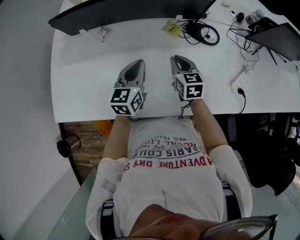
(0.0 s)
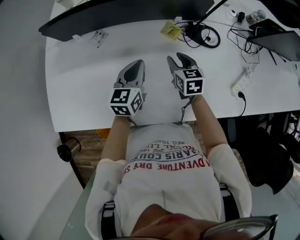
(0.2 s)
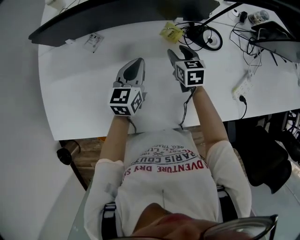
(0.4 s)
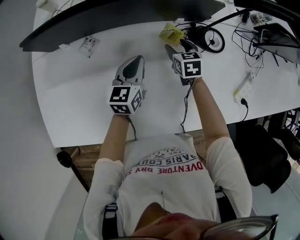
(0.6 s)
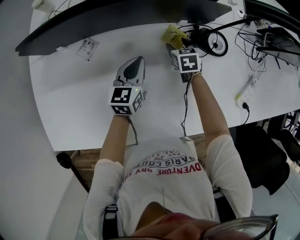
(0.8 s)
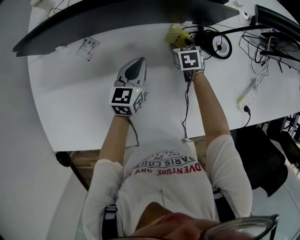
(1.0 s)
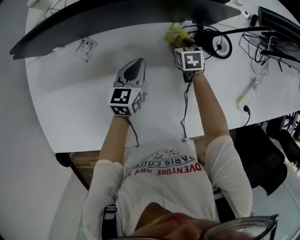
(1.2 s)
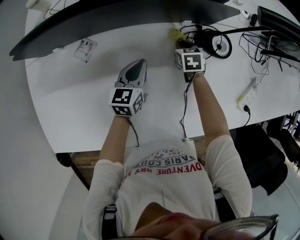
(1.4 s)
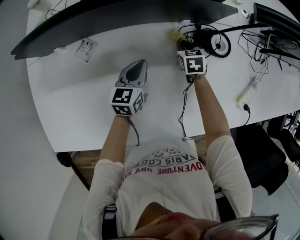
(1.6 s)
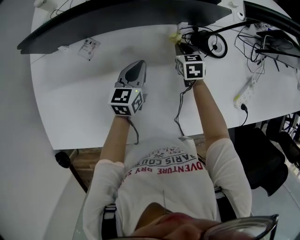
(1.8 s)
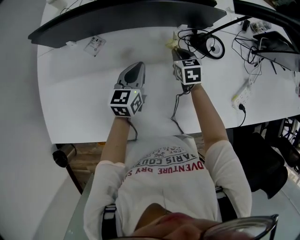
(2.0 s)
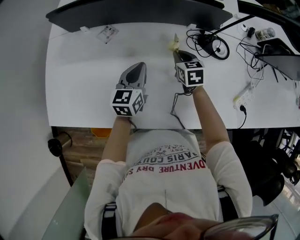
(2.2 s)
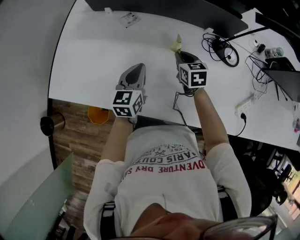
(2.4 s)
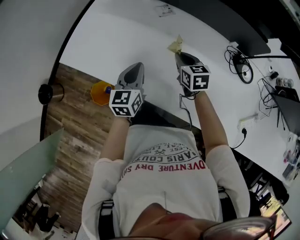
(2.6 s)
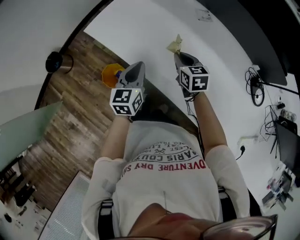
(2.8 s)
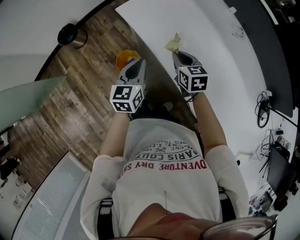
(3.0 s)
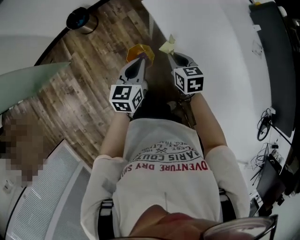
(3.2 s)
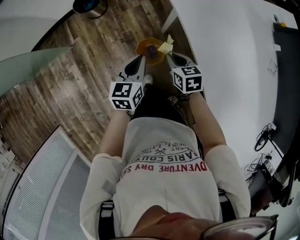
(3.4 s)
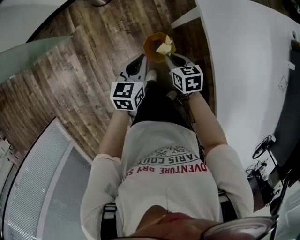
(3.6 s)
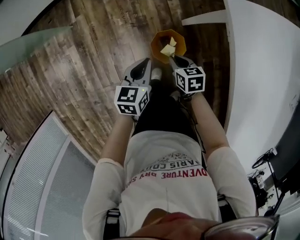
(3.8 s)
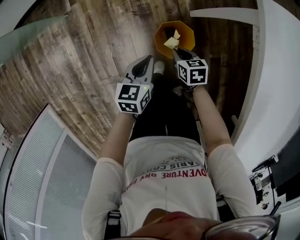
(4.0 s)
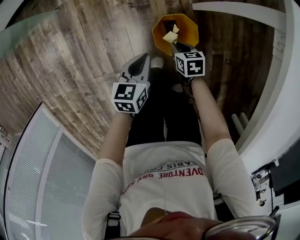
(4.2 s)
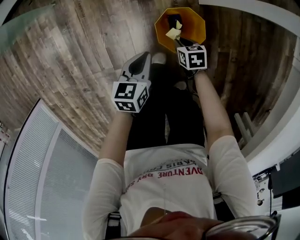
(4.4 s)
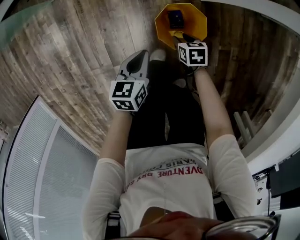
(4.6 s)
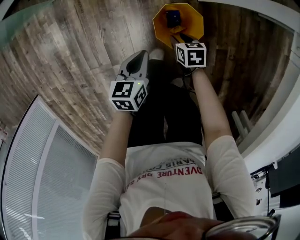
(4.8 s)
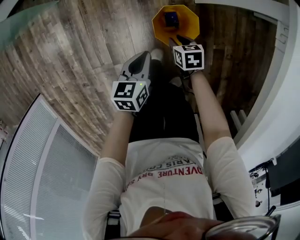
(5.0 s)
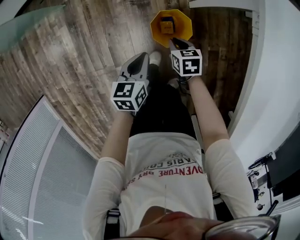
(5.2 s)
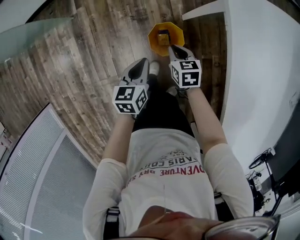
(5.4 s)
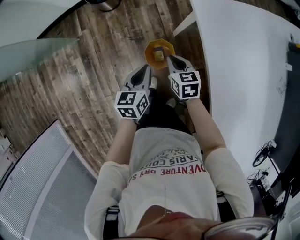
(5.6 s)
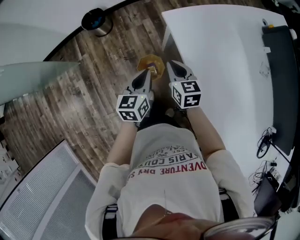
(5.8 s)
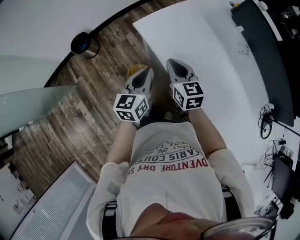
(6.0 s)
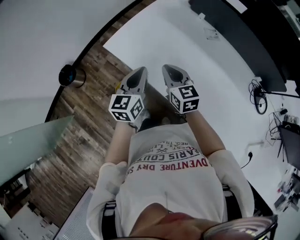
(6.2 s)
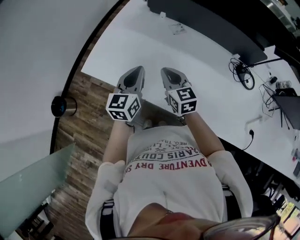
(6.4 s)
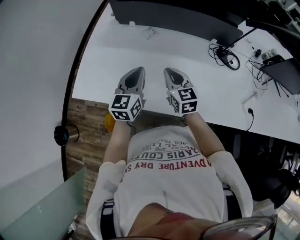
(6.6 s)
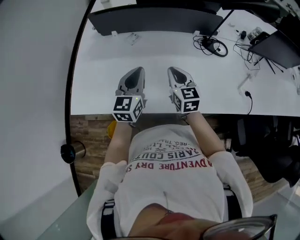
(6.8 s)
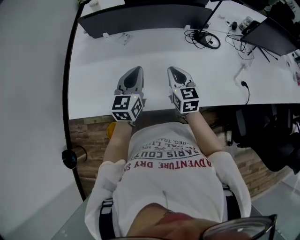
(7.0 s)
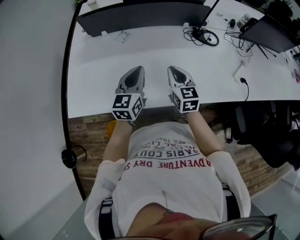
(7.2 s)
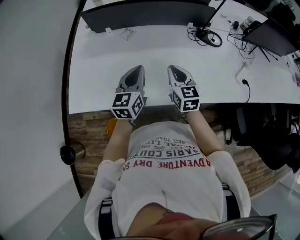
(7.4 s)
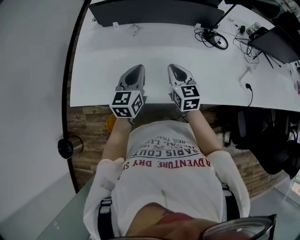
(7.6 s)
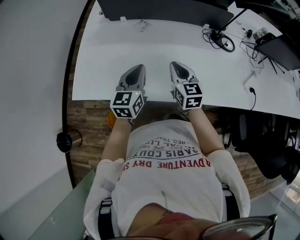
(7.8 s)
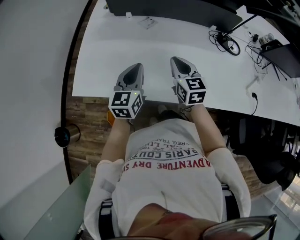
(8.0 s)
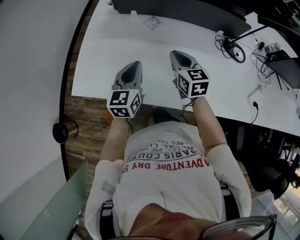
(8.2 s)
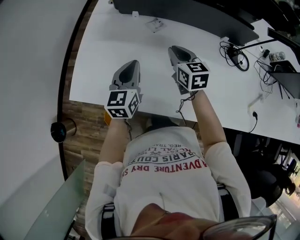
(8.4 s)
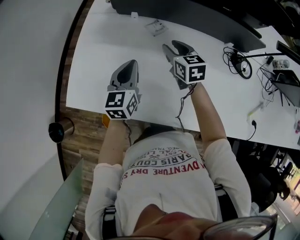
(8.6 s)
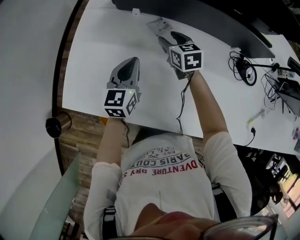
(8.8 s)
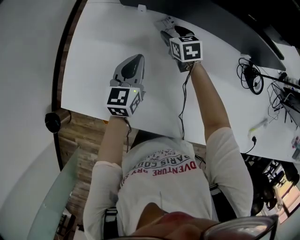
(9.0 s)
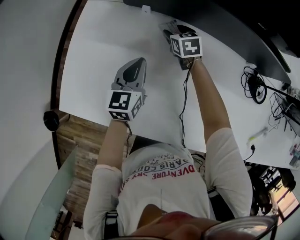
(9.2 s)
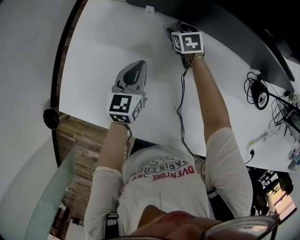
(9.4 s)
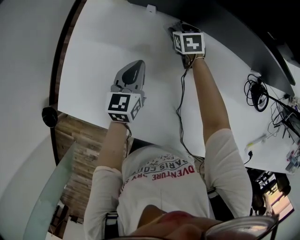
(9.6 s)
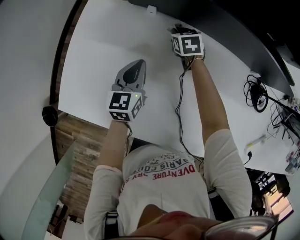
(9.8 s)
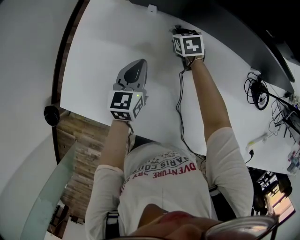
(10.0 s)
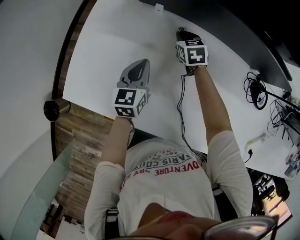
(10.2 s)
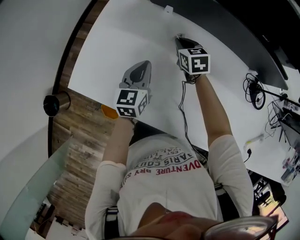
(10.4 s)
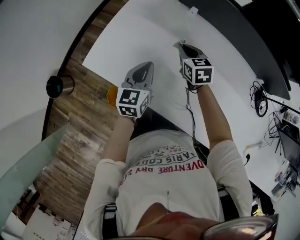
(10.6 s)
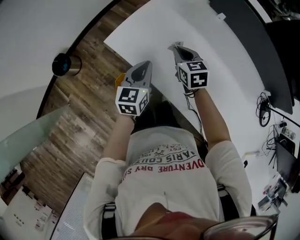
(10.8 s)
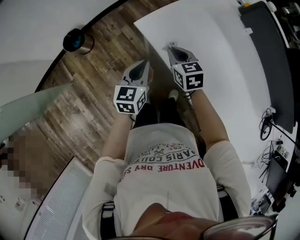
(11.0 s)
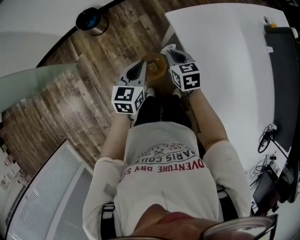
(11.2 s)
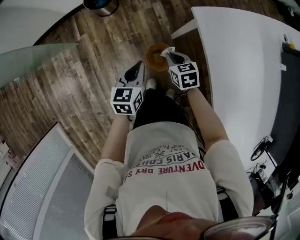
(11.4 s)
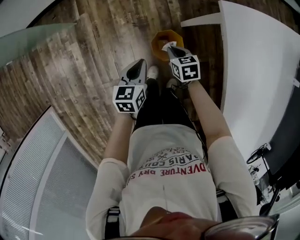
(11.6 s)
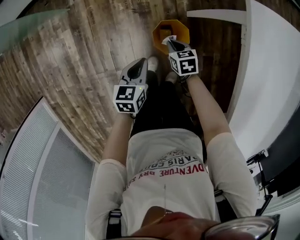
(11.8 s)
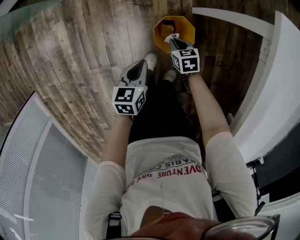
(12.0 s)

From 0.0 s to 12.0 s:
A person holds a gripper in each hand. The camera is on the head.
From 0.0 s to 1.6 s: The two grippers go roughly 25 cm forward and downward. The right gripper swivels approximately 20 degrees, and opens, then closes once more.
From 1.6 s to 3.0 s: The pair of grippers is taken roughly 60 cm. The right gripper turns by some 60 degrees; the left gripper turns by approximately 60 degrees.
From 3.0 s to 4.4 s: The grippers both shift downward by some 50 cm. The right gripper changes its angle by some 40 degrees. The left gripper changes its angle by roughly 40 degrees.
From 4.4 s to 6.0 s: The grippers both shift upward by some 60 cm. The left gripper changes its angle by roughly 40 degrees. Meanwhile the right gripper tilts its fingers approximately 40 degrees upward, and opens and closes again.
From 6.0 s to 7.6 s: The left gripper ends up roughly 30 cm from where it was, and turns by some 50 degrees; the right gripper changes place by roughly 35 cm, and rotates about 60 degrees.
From 7.6 s to 9.0 s: The left gripper travels forward and downward by roughly 25 cm; the right gripper is displaced forward and downward by some 40 cm, turns by roughly 30 degrees, and opens its fingers.
From 9.0 s to 10.4 s: The left gripper goes approximately 10 cm to the left and backward. Meanwhile the right gripper moves to the left, roughly 5 cm, and closes its fingers.
From 10.4 s to 12.0 s: Both grippers are carried approximately 60 cm. The left gripper rotates approximately 70 degrees; the right gripper rotates some 70 degrees.

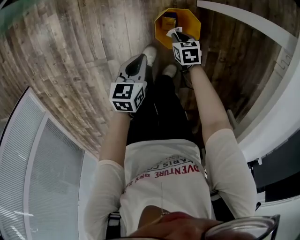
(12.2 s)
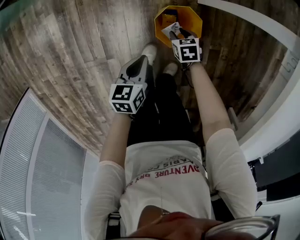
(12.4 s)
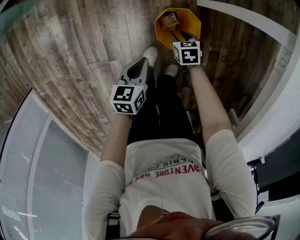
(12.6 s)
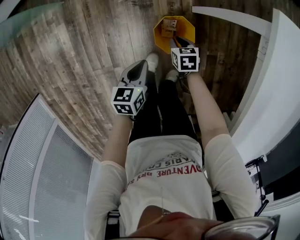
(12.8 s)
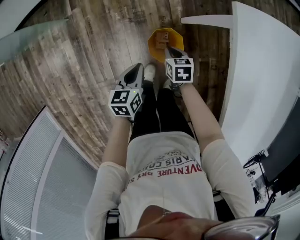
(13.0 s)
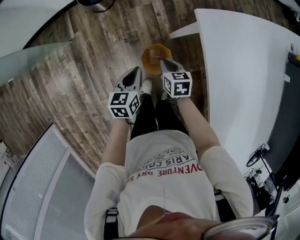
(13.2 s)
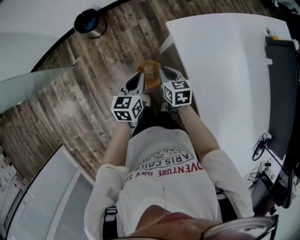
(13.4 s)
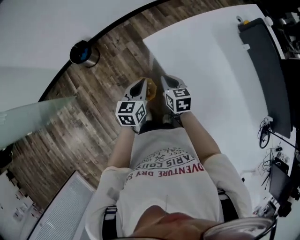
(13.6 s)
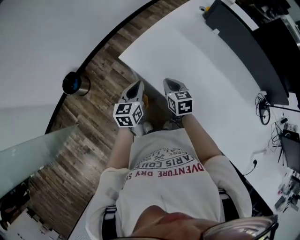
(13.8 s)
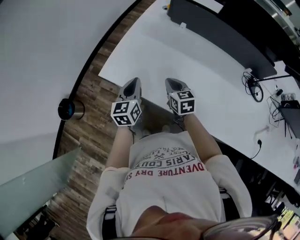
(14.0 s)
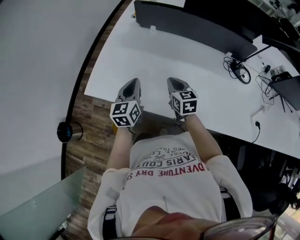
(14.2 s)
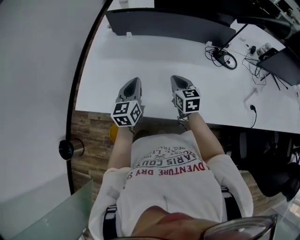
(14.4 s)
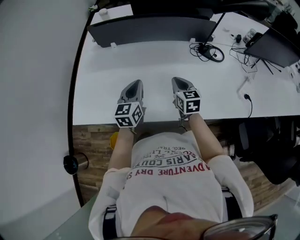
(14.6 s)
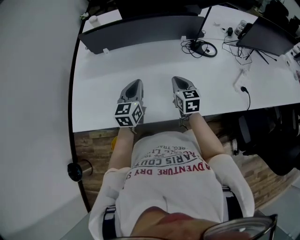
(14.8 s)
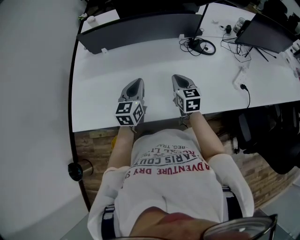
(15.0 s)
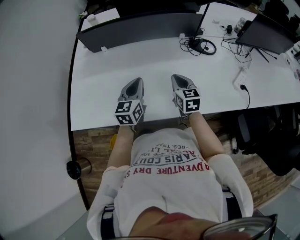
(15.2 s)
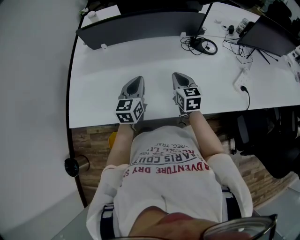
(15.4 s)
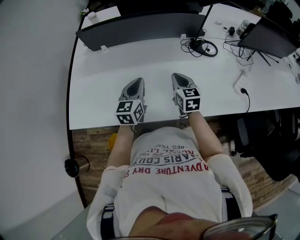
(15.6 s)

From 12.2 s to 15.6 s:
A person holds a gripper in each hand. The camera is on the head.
From 12.2 s to 13.8 s: The grippers both shift upward by roughly 50 cm. The right gripper turns by about 60 degrees, and opens and closes again. The left gripper swivels roughly 50 degrees.
From 13.8 s to 15.6 s: The pair of grippers is taken approximately 50 cm. The right gripper swivels some 50 degrees; the left gripper turns by some 50 degrees.

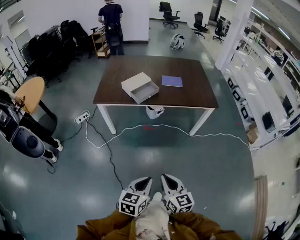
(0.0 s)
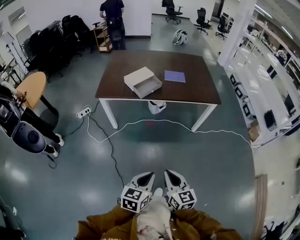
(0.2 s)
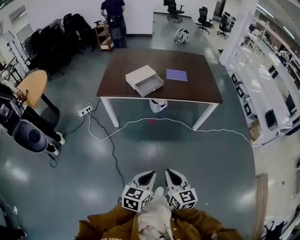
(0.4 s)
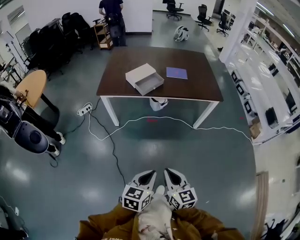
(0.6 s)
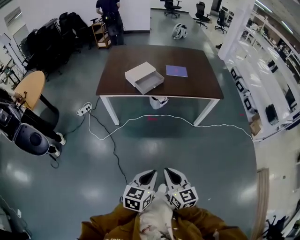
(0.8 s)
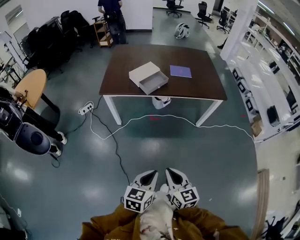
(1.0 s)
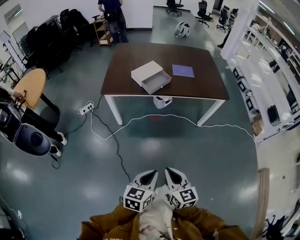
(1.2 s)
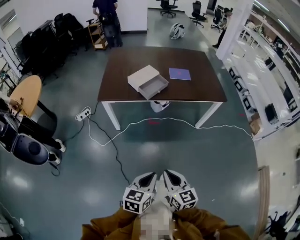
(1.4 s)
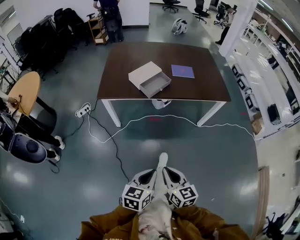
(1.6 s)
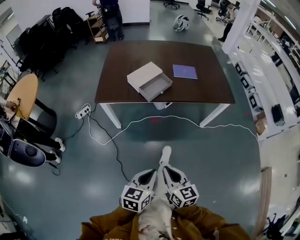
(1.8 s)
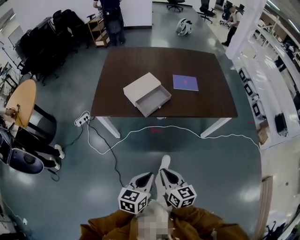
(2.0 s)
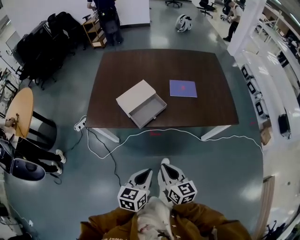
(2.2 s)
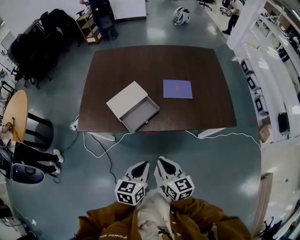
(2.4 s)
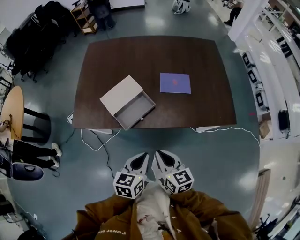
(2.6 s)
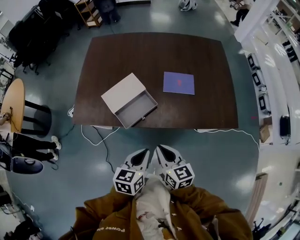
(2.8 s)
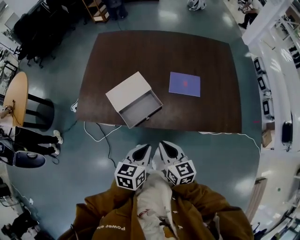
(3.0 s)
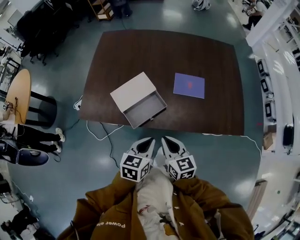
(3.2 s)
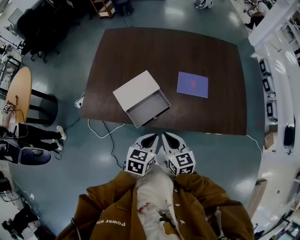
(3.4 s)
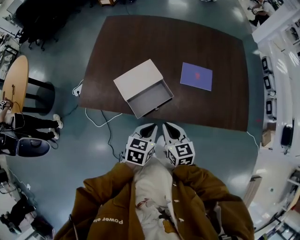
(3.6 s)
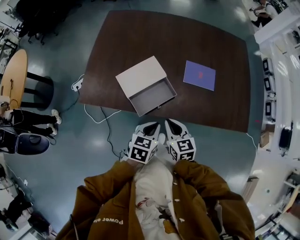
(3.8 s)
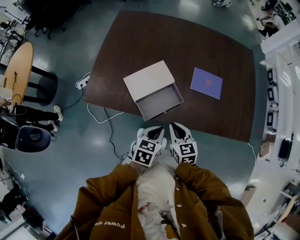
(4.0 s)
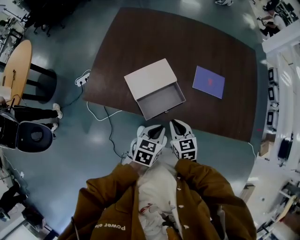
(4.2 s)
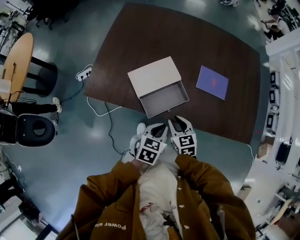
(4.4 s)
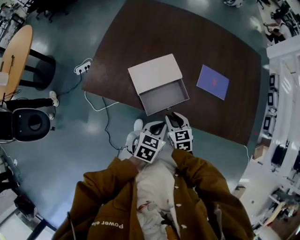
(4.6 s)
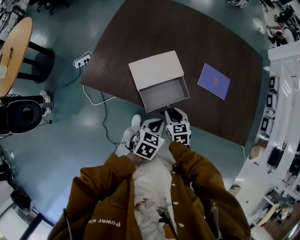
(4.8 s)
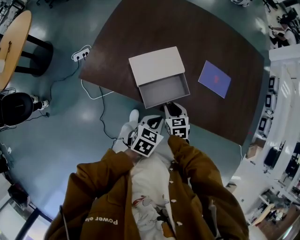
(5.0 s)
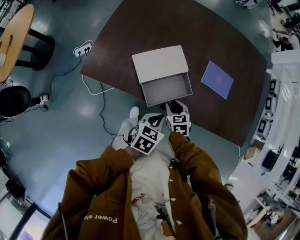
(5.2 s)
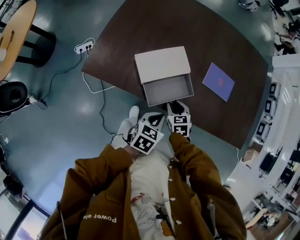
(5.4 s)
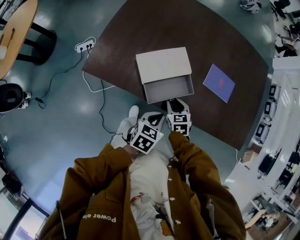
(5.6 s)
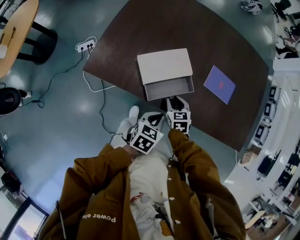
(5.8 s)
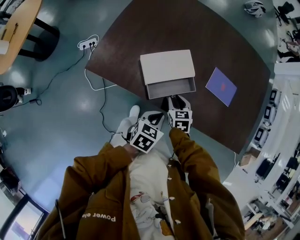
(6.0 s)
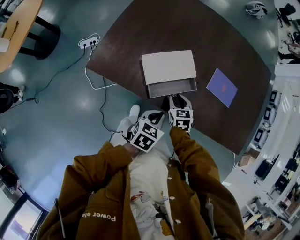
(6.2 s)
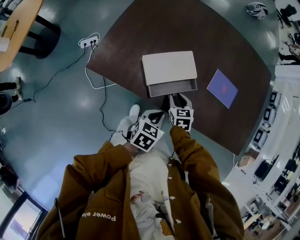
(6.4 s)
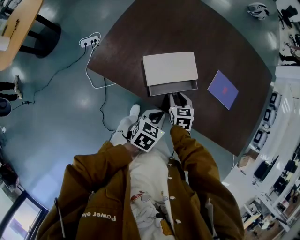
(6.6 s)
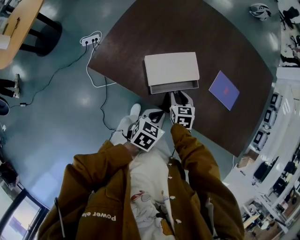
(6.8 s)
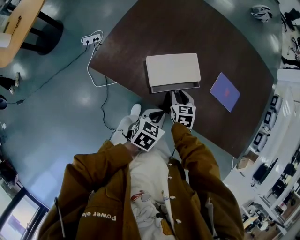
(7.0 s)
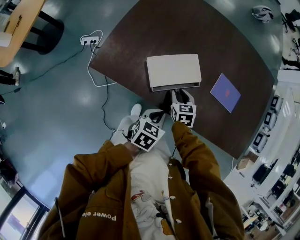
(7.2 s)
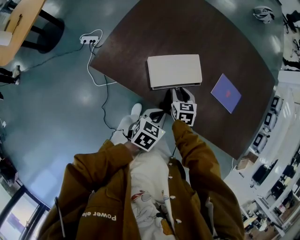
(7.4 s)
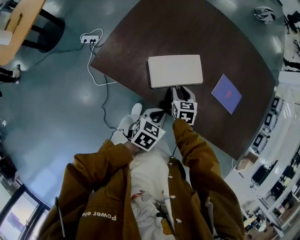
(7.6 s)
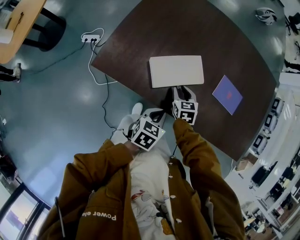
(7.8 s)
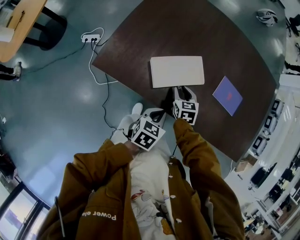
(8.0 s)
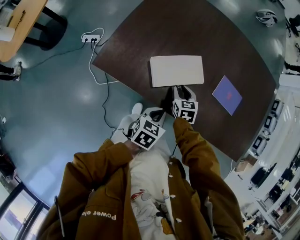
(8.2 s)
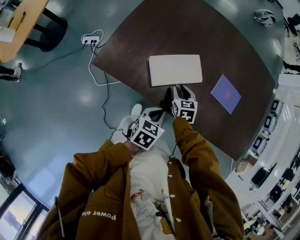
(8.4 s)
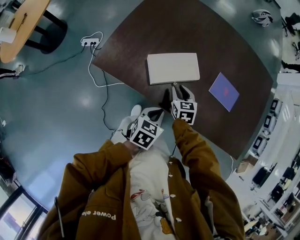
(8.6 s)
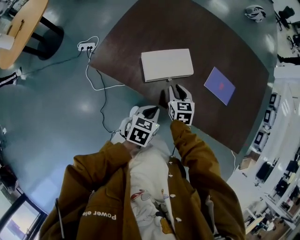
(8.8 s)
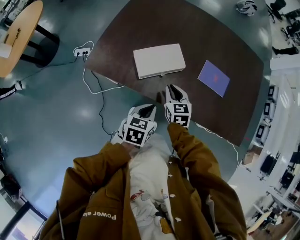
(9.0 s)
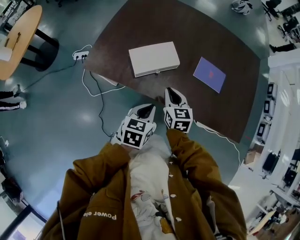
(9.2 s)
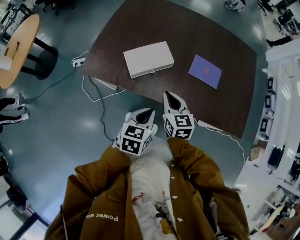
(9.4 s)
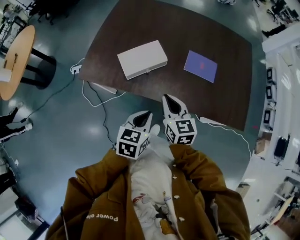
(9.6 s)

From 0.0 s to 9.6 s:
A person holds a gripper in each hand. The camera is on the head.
From 0.0 s to 1.6 s: The right gripper moves to the left and forward, approximately 15 cm, while the left gripper moves forward and to the left, about 15 cm.
From 1.6 s to 3.2 s: The pair of grippers is taken forward, roughly 60 cm.
From 3.2 s to 4.8 s: The left gripper heads downward and to the left, covering roughly 15 cm; the right gripper is displaced downward, forward and to the left by approximately 20 cm, swivels approximately 30 degrees, and opens.
From 4.8 s to 6.4 s: The right gripper moves forward, approximately 5 cm.
From 6.4 s to 8.0 s: The right gripper changes place by some 5 cm.
From 8.0 s to 9.6 s: The right gripper heads upward, backward and to the right, covering roughly 25 cm, turns by about 30 degrees, and closes up; the left gripper goes approximately 20 cm backward, upward and to the right.
